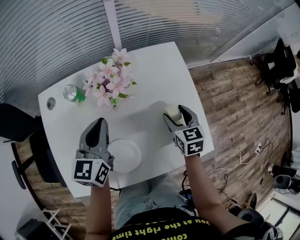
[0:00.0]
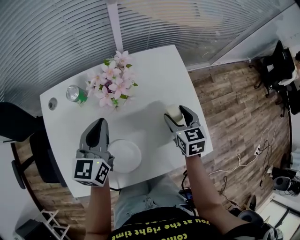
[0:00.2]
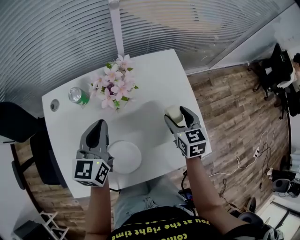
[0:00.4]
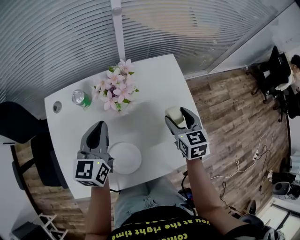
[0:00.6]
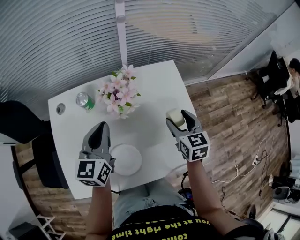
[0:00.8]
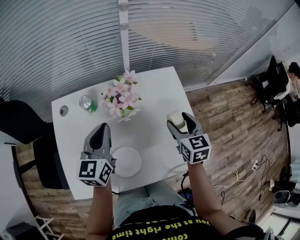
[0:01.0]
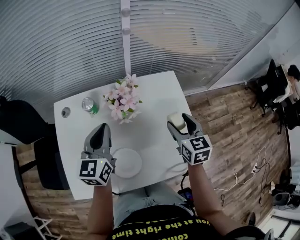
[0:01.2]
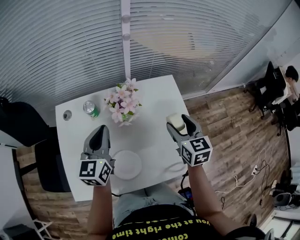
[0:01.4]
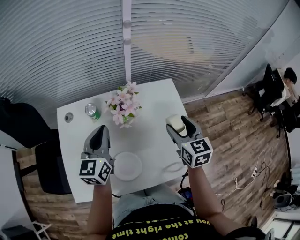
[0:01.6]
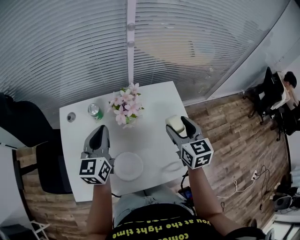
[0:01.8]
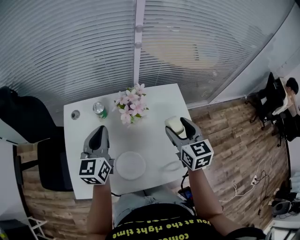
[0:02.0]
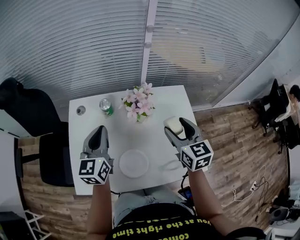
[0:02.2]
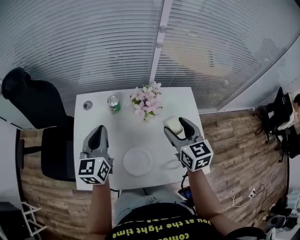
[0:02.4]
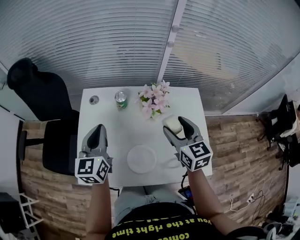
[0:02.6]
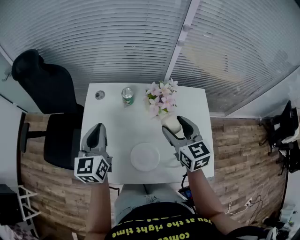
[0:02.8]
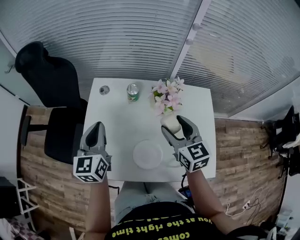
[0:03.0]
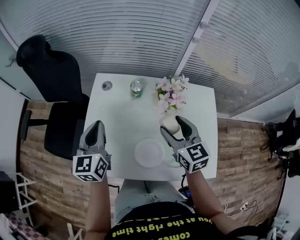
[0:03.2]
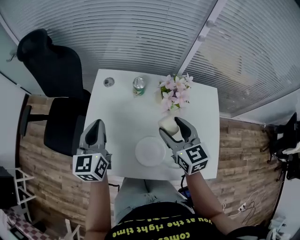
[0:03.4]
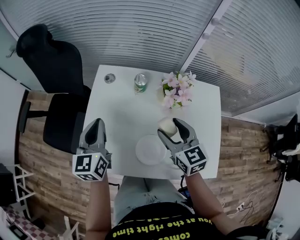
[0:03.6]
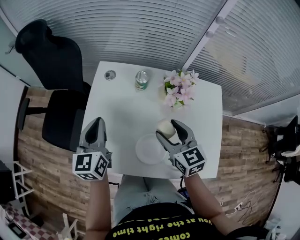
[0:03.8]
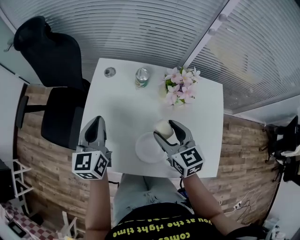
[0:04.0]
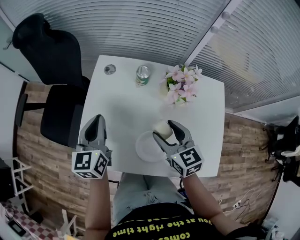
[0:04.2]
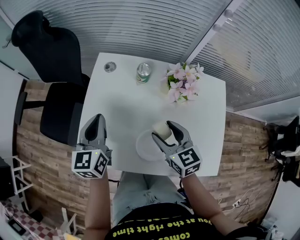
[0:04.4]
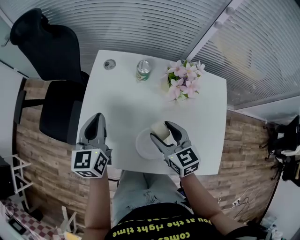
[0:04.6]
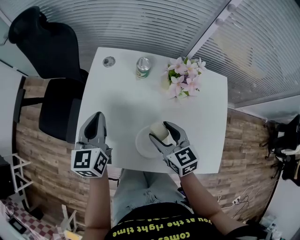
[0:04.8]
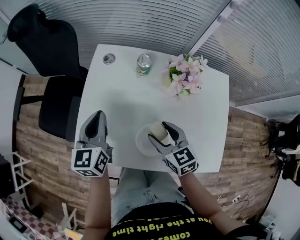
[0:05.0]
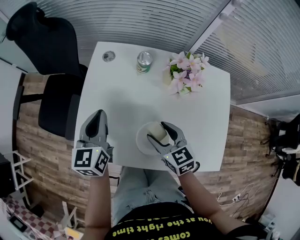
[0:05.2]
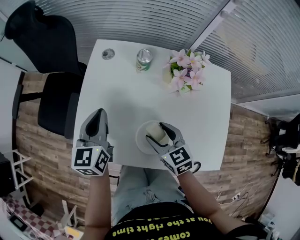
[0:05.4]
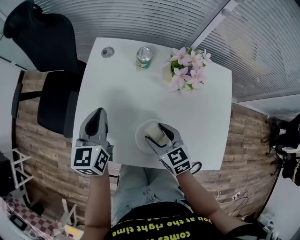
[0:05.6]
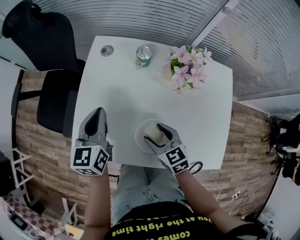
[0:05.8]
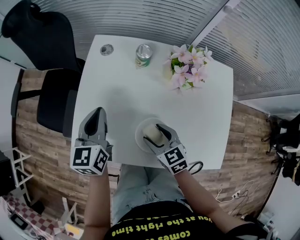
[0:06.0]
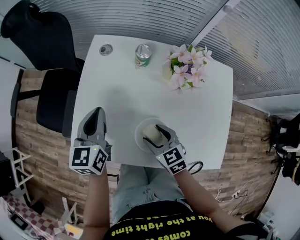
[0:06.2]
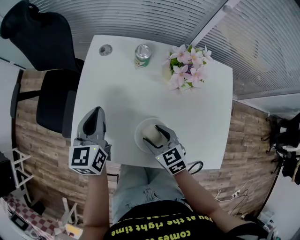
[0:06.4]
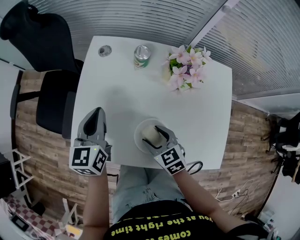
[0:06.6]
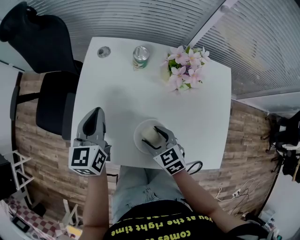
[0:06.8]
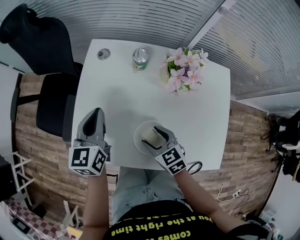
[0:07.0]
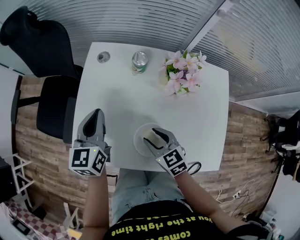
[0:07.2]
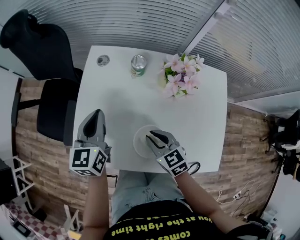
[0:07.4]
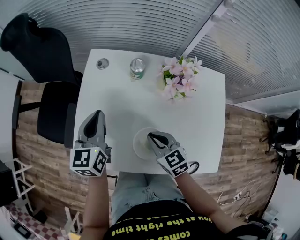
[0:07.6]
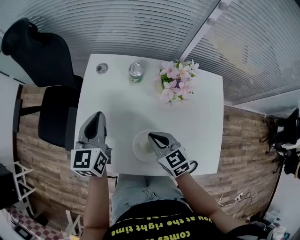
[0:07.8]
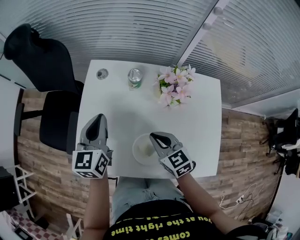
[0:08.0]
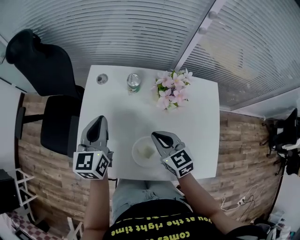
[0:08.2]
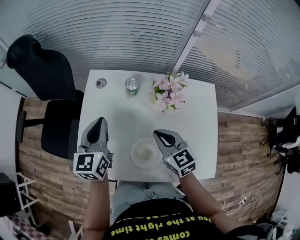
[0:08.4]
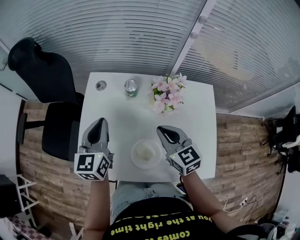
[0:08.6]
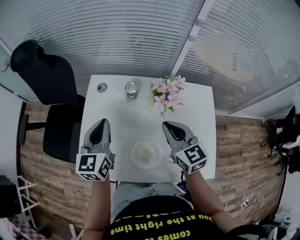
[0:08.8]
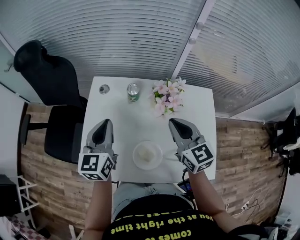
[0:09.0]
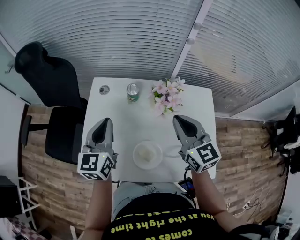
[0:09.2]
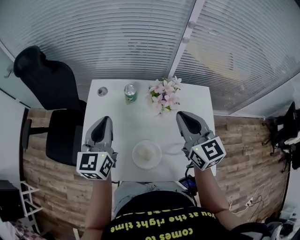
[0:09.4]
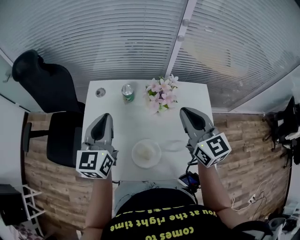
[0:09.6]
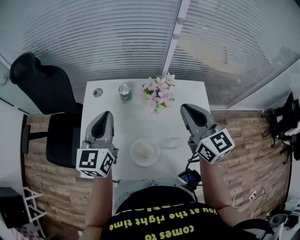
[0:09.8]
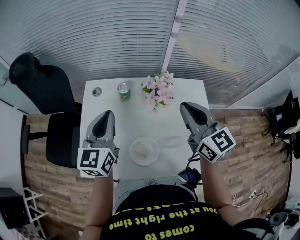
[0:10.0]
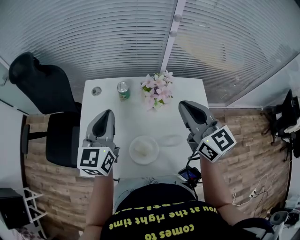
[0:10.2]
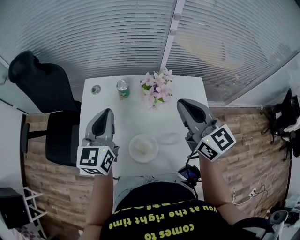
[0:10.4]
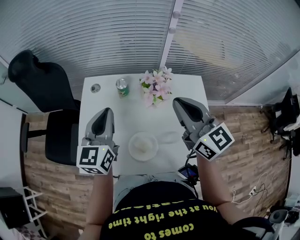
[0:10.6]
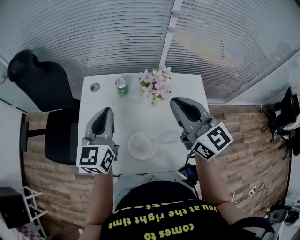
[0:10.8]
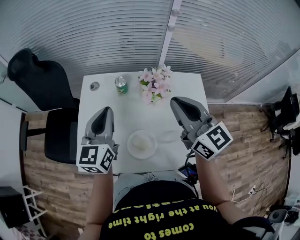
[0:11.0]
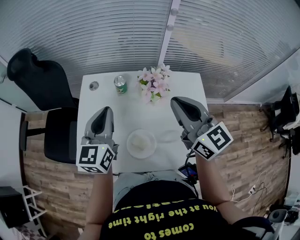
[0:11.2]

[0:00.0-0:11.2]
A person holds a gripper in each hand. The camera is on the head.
0:00.0 to 0:01.6: The right gripper shifts approximately 15 cm upward; the left gripper heads upward, covering some 10 cm.
0:01.6 to 0:03.2: The left gripper shifts by about 20 cm, and changes its angle by roughly 20 degrees; the right gripper changes place by approximately 20 cm, and changes its angle by roughly 30 degrees.
0:03.2 to 0:04.8: The left gripper goes about 5 cm downward, while the right gripper travels downward and to the left by approximately 15 cm.
0:04.8 to 0:06.4: The right gripper heads downward, covering roughly 10 cm.
0:06.4 to 0:08.0: The left gripper changes place by roughly 5 cm. The right gripper moves upward, roughly 10 cm, and closes up.
0:08.0 to 0:09.6: The left gripper travels upward and to the right by approximately 10 cm; the right gripper is displaced upward and to the right by roughly 25 cm, and changes its angle by roughly 30 degrees.
0:09.6 to 0:11.2: The right gripper changes place by about 5 cm.

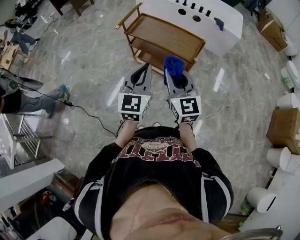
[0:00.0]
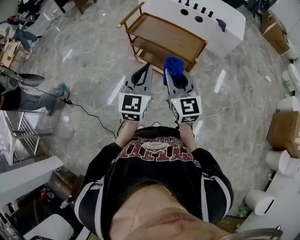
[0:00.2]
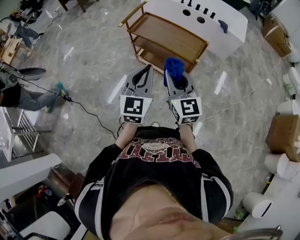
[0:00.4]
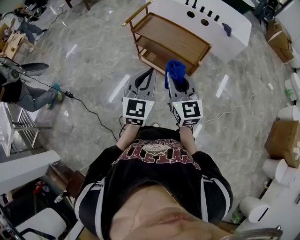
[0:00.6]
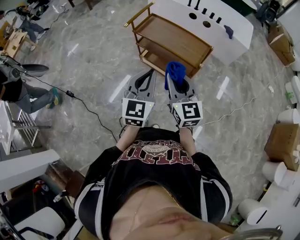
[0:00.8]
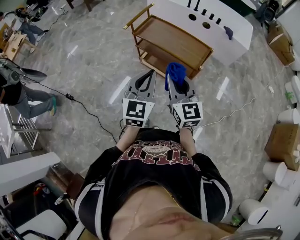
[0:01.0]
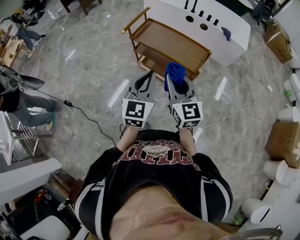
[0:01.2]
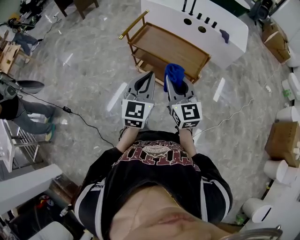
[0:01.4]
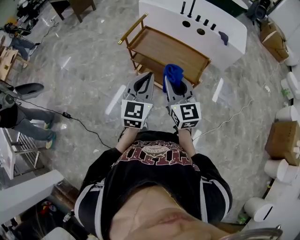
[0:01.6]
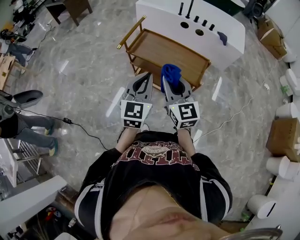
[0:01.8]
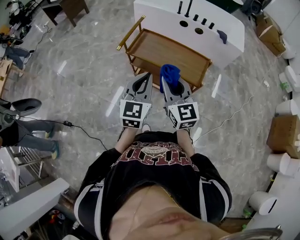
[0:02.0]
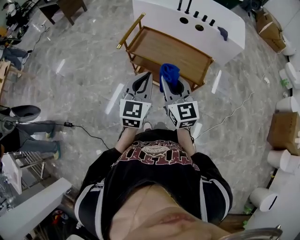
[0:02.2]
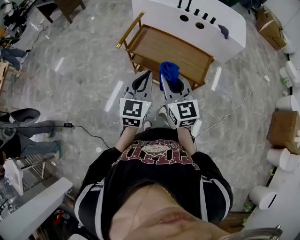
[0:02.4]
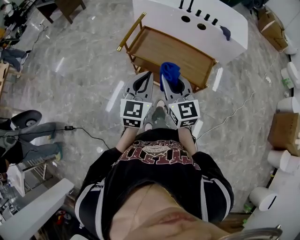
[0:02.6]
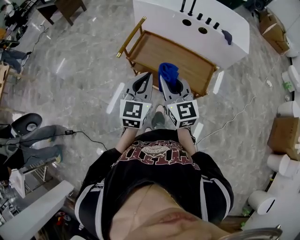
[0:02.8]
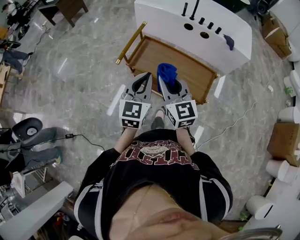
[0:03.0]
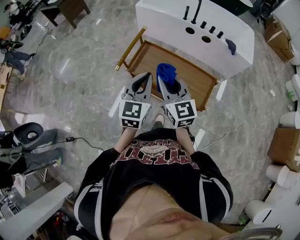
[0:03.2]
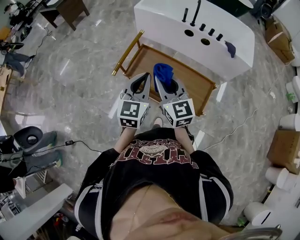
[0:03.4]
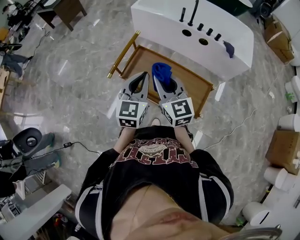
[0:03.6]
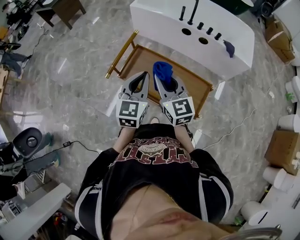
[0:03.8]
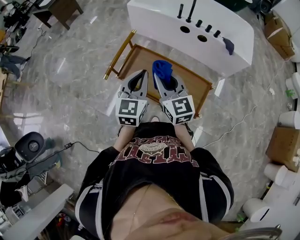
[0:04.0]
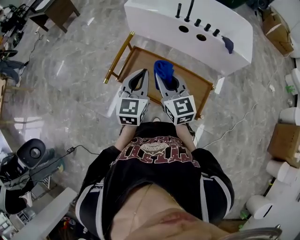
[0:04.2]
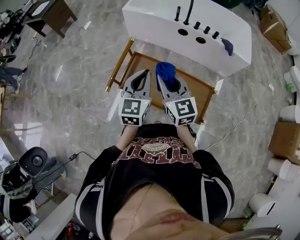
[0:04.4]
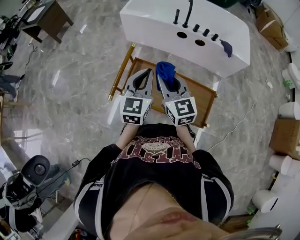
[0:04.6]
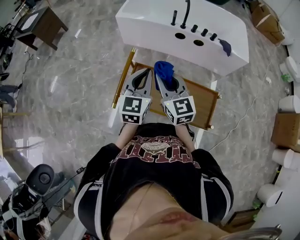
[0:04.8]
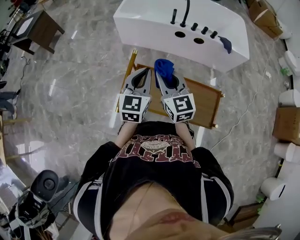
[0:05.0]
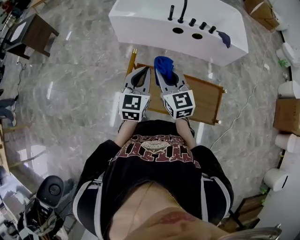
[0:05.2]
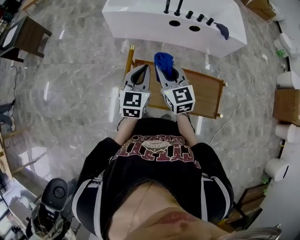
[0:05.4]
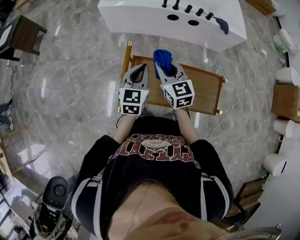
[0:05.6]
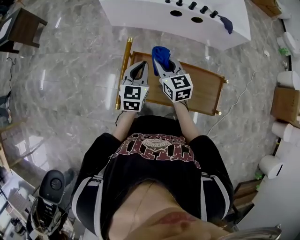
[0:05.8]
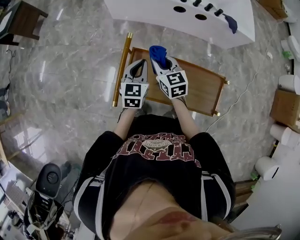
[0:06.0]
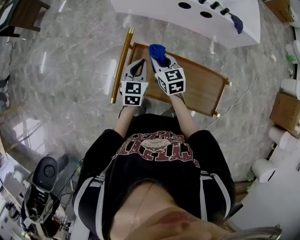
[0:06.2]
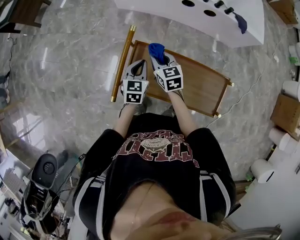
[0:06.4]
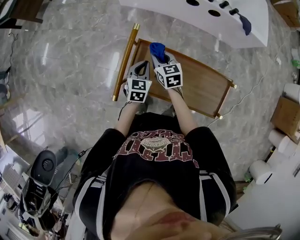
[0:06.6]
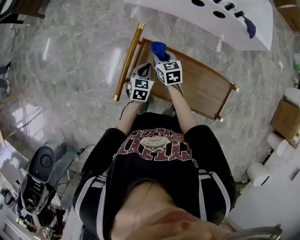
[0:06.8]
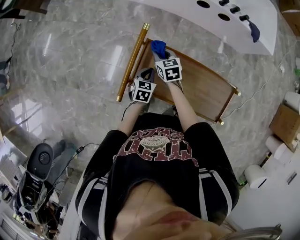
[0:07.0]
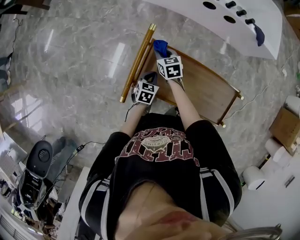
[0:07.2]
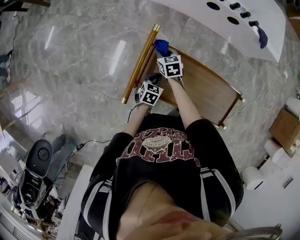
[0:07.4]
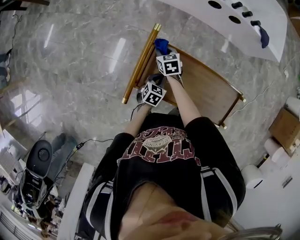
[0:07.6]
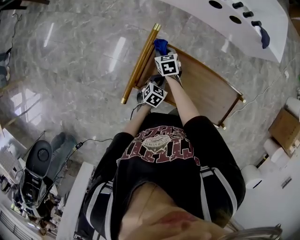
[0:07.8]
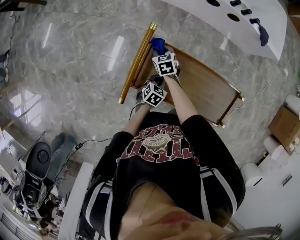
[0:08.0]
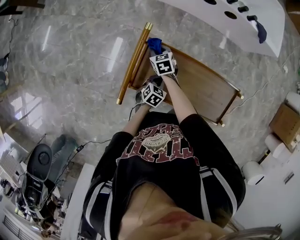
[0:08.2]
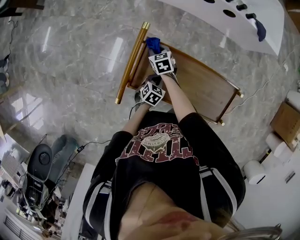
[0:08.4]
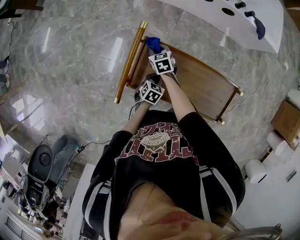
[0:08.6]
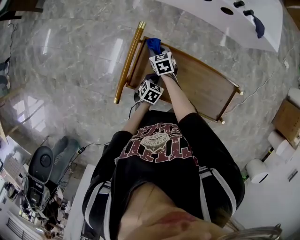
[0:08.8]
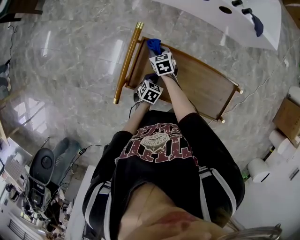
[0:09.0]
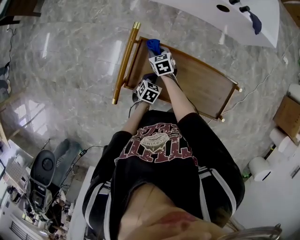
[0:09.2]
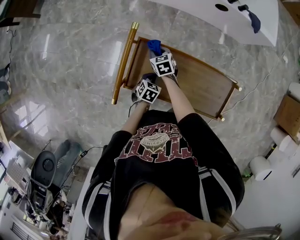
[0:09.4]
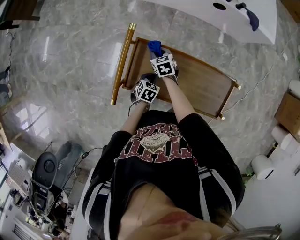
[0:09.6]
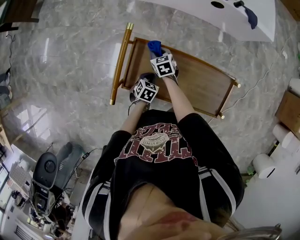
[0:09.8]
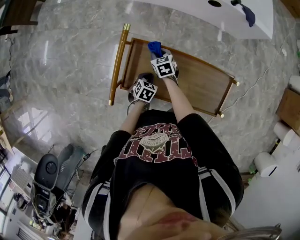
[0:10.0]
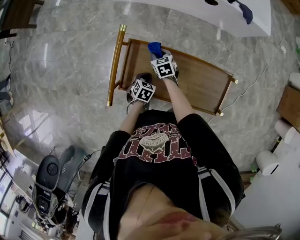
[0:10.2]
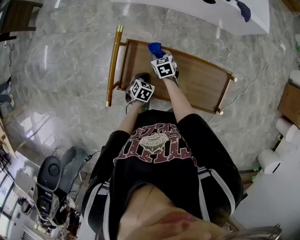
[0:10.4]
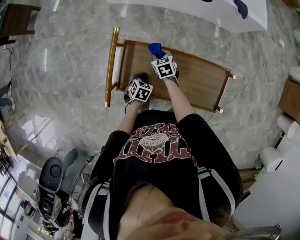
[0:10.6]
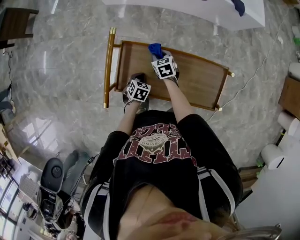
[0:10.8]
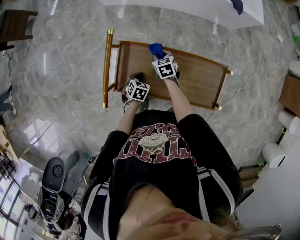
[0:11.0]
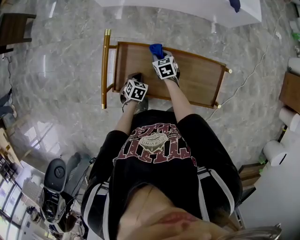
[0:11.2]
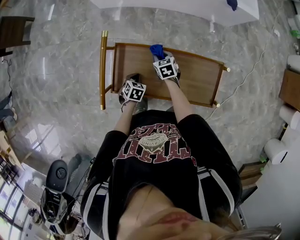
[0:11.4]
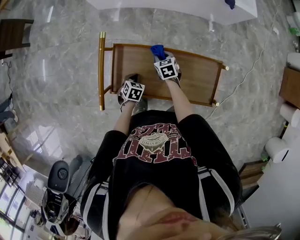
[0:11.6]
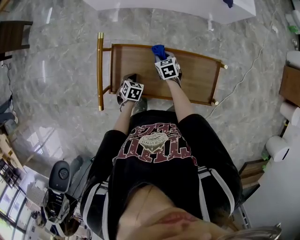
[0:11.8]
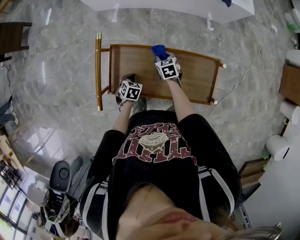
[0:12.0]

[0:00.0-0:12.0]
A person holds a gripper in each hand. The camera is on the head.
0:00.0 to 0:01.6: The grippers both shift forward by roughly 15 cm.
0:01.6 to 0:03.0: Both grippers travel together forward, roughly 20 cm.
0:03.0 to 0:04.4: Both grippers move forward, roughly 20 cm.
0:04.4 to 0:06.0: The grippers both shift forward, downward and to the left by about 25 cm. The right gripper rotates some 20 degrees.
0:06.0 to 0:07.6: The grippers both shift downward by about 25 cm. The right gripper changes its angle by some 20 degrees, while the left gripper turns by about 30 degrees.
0:07.6 to 0:09.0: The grippers stay close to where they were, moving slightly.
0:09.0 to 0:10.4: The right gripper goes some 10 cm to the right.
0:10.4 to 0:12.0: The right gripper heads to the right, covering approximately 10 cm.

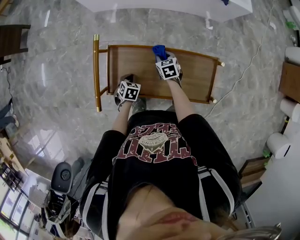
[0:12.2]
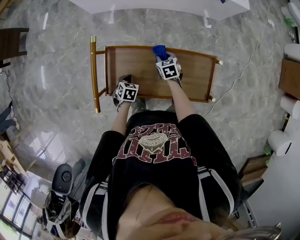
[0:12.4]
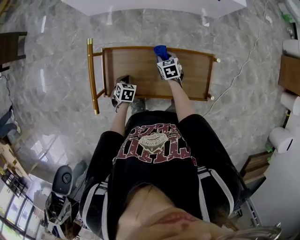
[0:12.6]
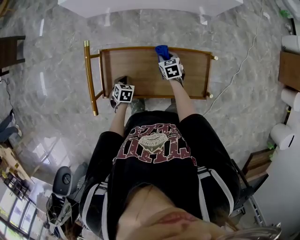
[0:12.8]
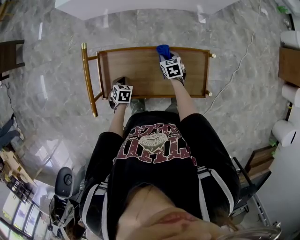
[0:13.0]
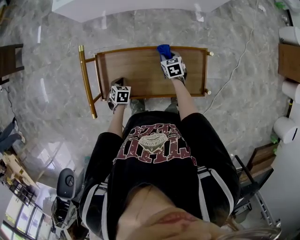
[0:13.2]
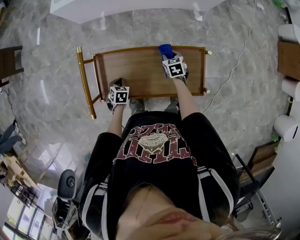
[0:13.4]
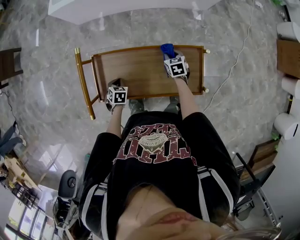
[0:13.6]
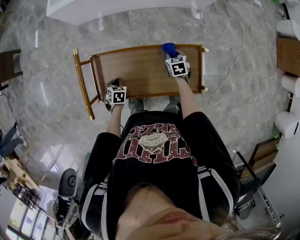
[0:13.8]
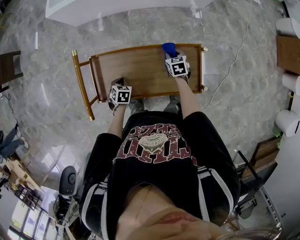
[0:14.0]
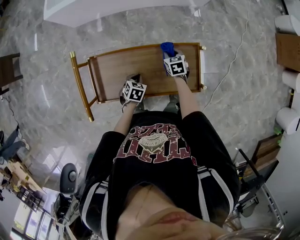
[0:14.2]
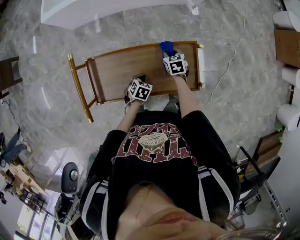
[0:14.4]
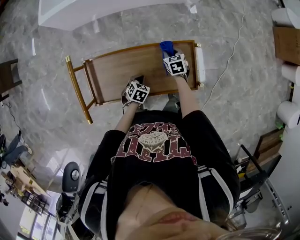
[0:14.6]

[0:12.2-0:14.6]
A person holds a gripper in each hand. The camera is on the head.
0:12.2 to 0:13.4: The right gripper goes approximately 15 cm to the right.
0:13.4 to 0:14.6: The left gripper shifts about 20 cm to the right, and turns by roughly 20 degrees. Meanwhile the right gripper heads to the right, covering about 5 cm.
